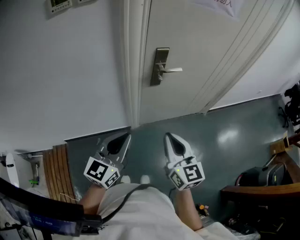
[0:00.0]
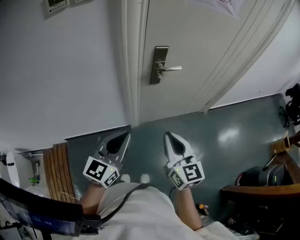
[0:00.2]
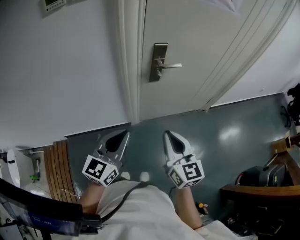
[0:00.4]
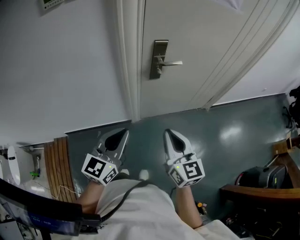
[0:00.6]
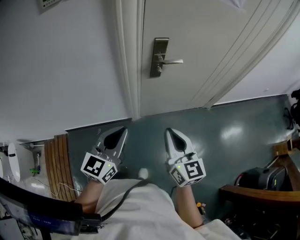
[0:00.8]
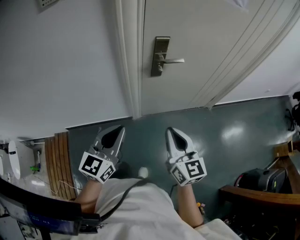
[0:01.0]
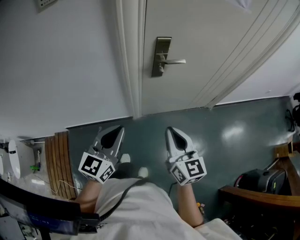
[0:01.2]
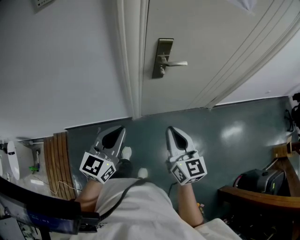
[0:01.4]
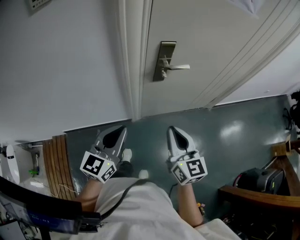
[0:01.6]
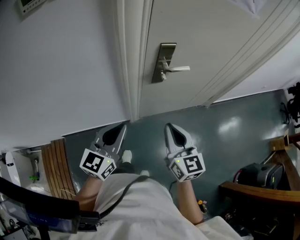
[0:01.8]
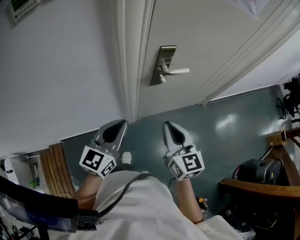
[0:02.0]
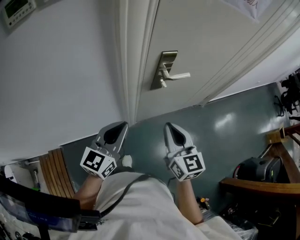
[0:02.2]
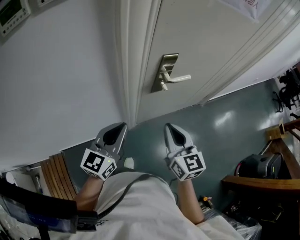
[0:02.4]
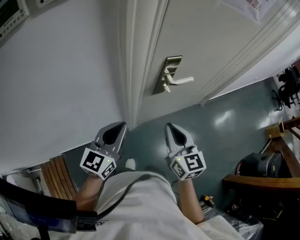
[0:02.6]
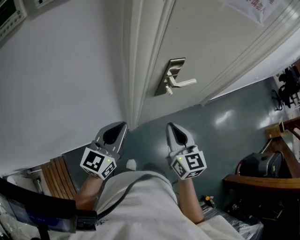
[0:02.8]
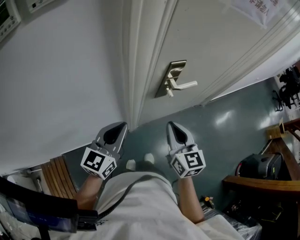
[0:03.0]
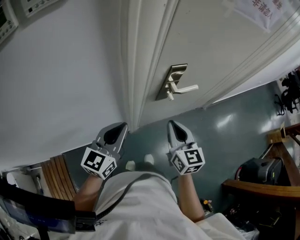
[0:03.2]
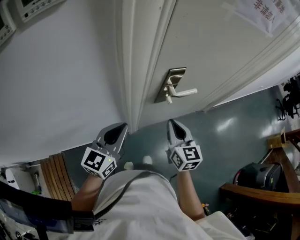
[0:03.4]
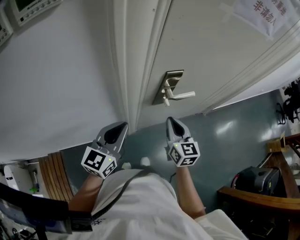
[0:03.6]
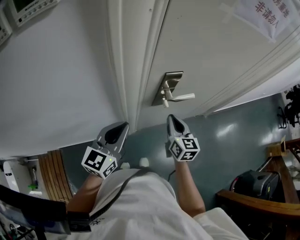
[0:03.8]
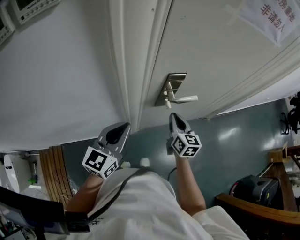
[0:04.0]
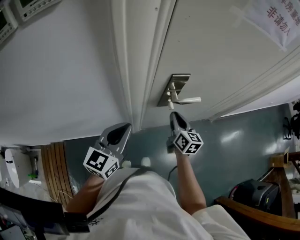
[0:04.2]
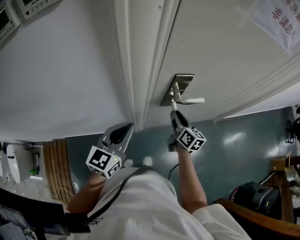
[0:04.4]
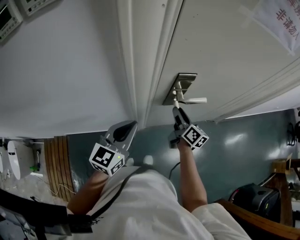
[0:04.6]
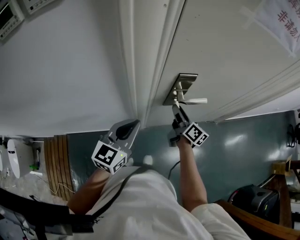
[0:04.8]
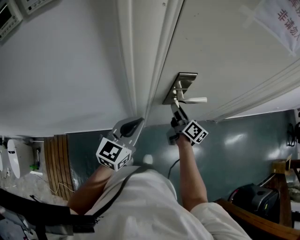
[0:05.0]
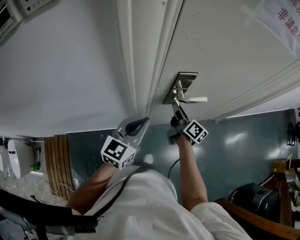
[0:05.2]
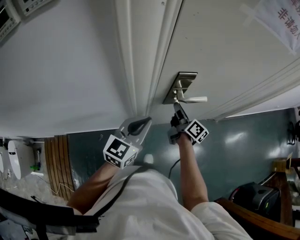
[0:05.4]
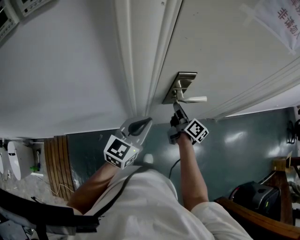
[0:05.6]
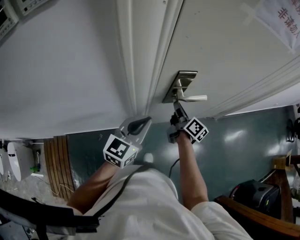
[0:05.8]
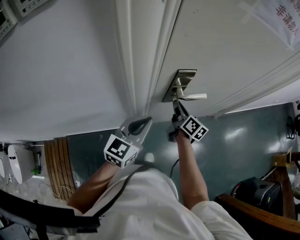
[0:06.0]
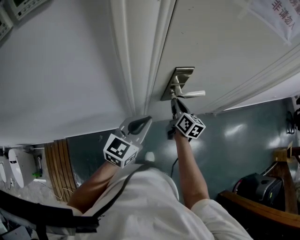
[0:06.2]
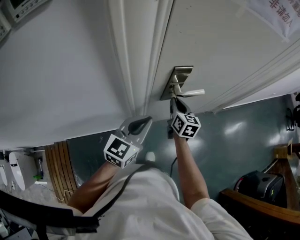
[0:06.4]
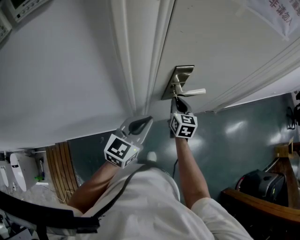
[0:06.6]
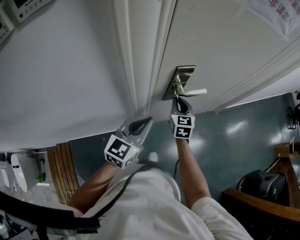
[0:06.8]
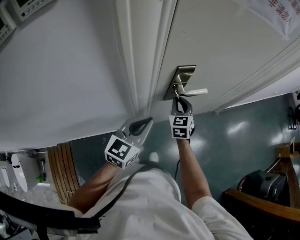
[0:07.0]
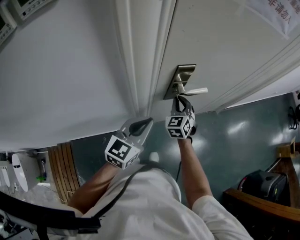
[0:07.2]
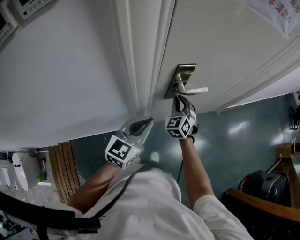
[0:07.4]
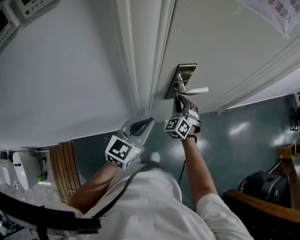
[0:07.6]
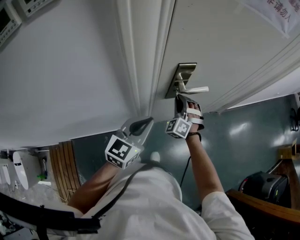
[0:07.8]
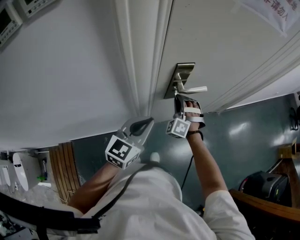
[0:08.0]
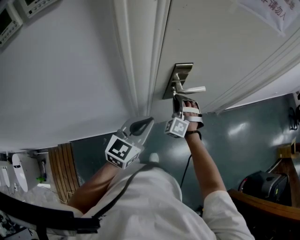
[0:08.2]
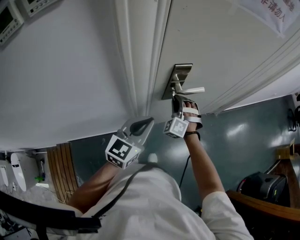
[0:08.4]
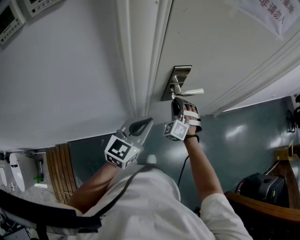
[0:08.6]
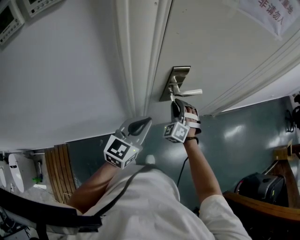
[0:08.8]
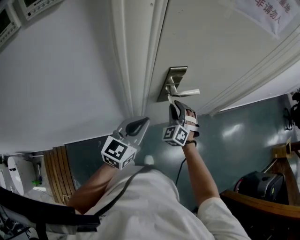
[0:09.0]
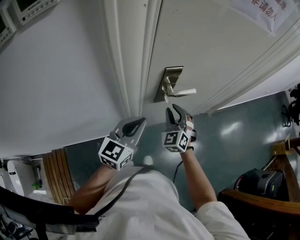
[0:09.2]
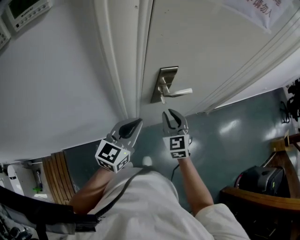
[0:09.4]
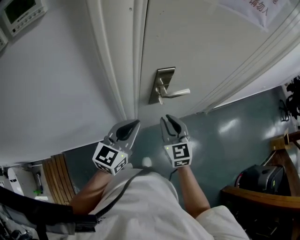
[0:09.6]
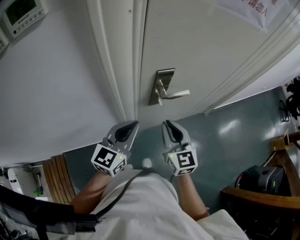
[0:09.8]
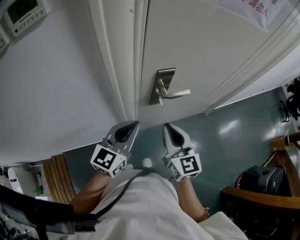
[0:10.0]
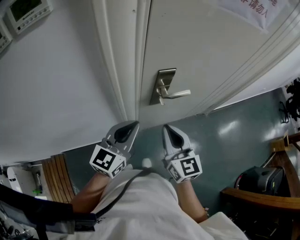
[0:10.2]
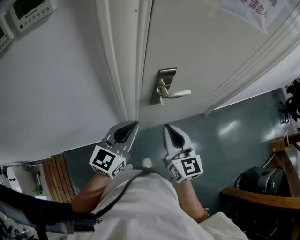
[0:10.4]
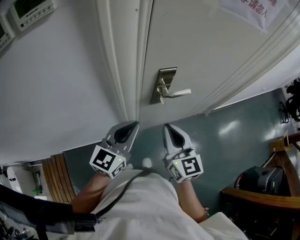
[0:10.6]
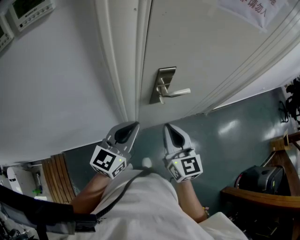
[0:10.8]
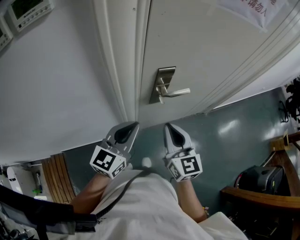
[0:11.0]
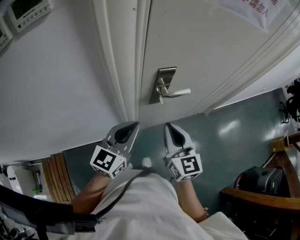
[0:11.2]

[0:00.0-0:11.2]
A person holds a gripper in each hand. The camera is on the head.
0:00.0 to 0:01.6: Both grippers travel together forward, about 10 cm.
0:01.6 to 0:03.2: The grippers both shift forward and to the left by about 20 cm.
0:03.2 to 0:04.8: The right gripper heads forward and downward, covering approximately 20 cm, rolls clockwise, seen from behind, by roughly 40 degrees, and opens, while the left gripper moves to the right, about 5 cm.
0:04.8 to 0:06.4: The right gripper swivels roughly 40 degrees, and closes up.
0:06.4 to 0:08.0: The right gripper rolls counterclockwise, seen from behind, by roughly 90 degrees.
0:08.0 to 0:09.6: The right gripper heads backward and upward, covering about 15 cm, and rotates around the line of its fingers by some 60 degrees, clockwise from behind.
0:09.6 to 0:11.2: The right gripper shifts some 5 cm upward.

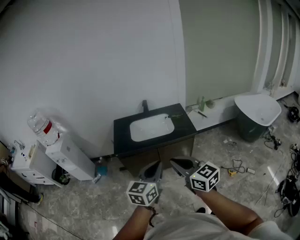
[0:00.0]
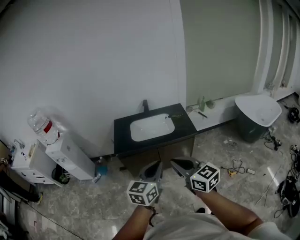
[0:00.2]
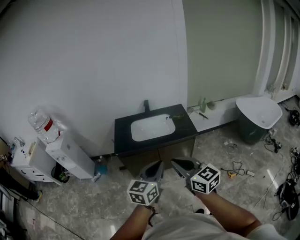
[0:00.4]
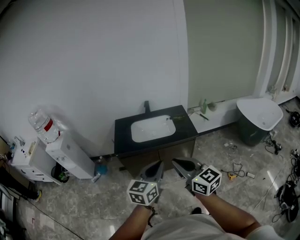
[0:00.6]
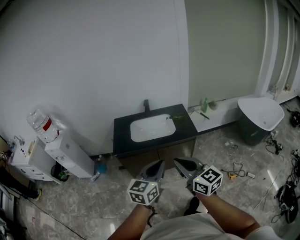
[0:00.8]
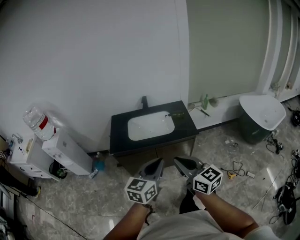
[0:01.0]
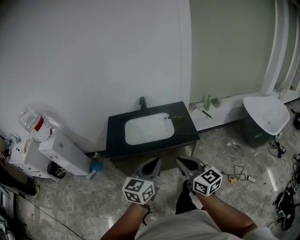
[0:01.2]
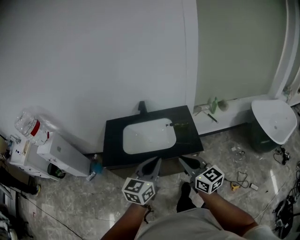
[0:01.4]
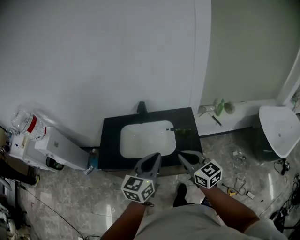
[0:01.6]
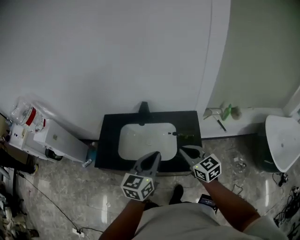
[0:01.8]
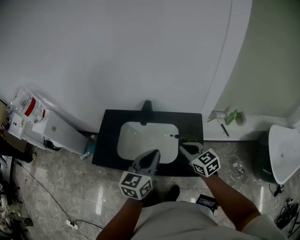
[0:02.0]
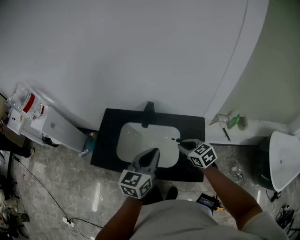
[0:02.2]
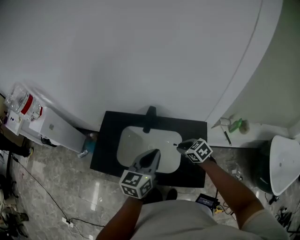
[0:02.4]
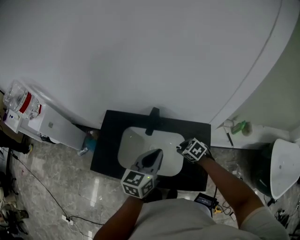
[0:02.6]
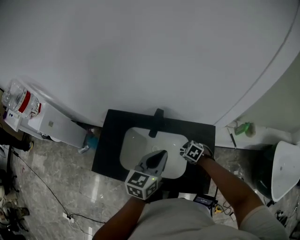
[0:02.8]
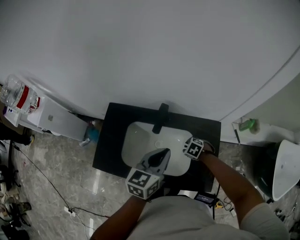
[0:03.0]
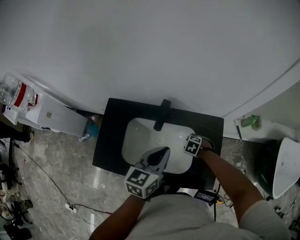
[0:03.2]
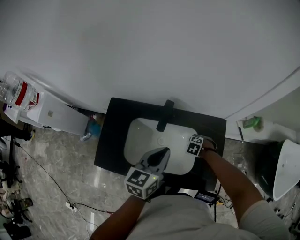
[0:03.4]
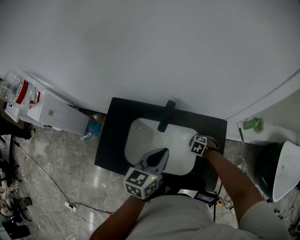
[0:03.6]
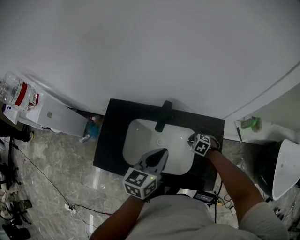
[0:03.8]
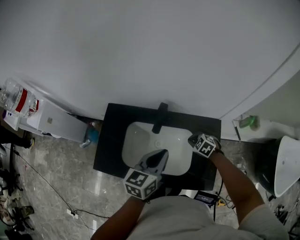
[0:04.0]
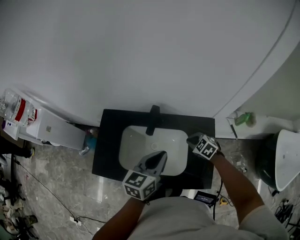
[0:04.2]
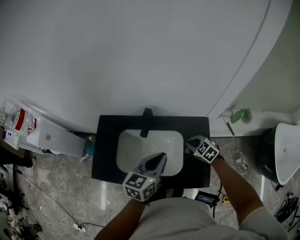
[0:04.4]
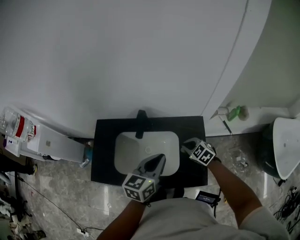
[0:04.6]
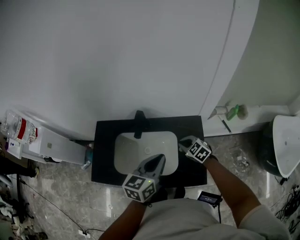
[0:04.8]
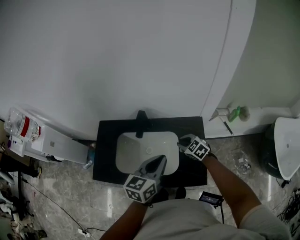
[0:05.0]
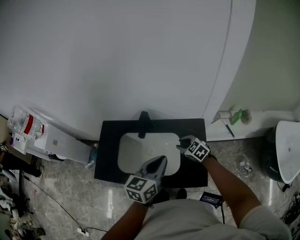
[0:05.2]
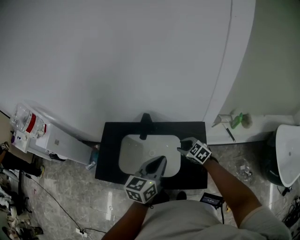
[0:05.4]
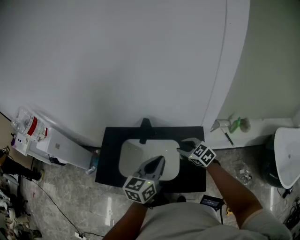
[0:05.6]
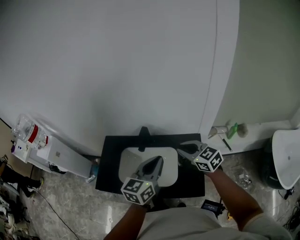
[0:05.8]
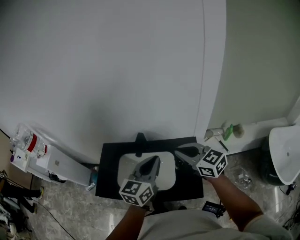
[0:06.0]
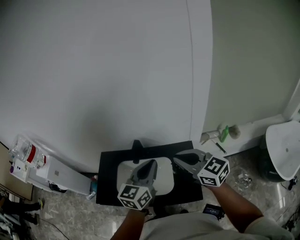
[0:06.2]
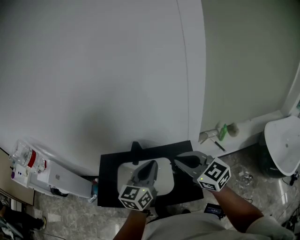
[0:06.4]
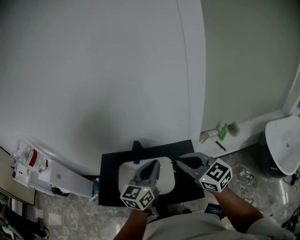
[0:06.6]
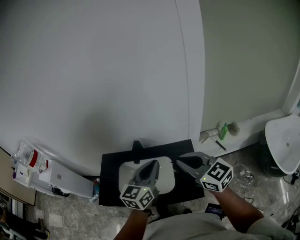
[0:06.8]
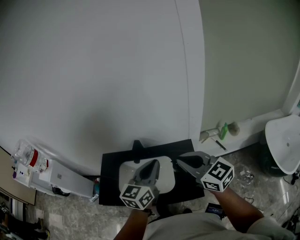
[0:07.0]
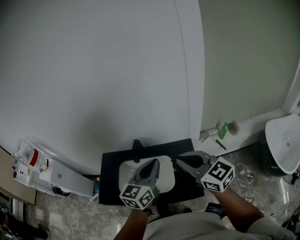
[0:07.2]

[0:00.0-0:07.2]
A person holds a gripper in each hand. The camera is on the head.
0:00.0 to 0:01.4: The left gripper goes approximately 30 cm forward, while the right gripper shifts some 35 cm forward and to the right.
0:01.4 to 0:02.8: The left gripper ends up about 40 cm from where it was; the right gripper shifts by some 50 cm, points its fingers roughly 70 degrees further downward, and opens.
0:02.8 to 0:04.4: The right gripper moves roughly 10 cm, changes its angle by approximately 20 degrees, and closes its fingers.
0:04.4 to 0:05.8: The left gripper shifts about 10 cm upward. The right gripper travels upward by about 20 cm, and turns by roughly 30 degrees.
0:05.8 to 0:07.2: The left gripper travels upward by approximately 5 cm. The right gripper shifts some 20 cm upward and backward.

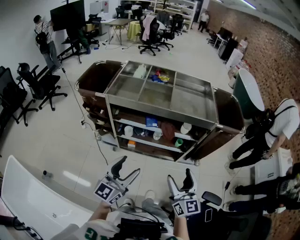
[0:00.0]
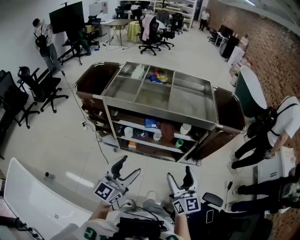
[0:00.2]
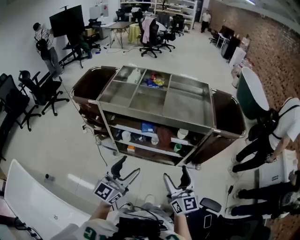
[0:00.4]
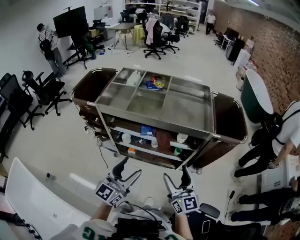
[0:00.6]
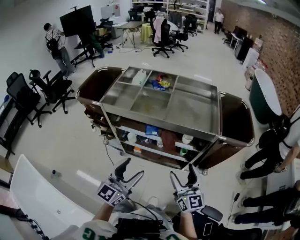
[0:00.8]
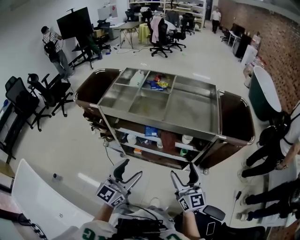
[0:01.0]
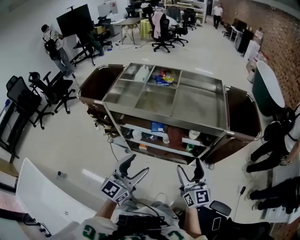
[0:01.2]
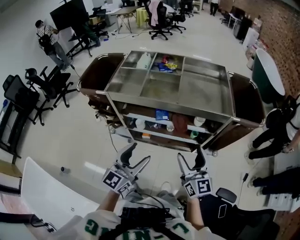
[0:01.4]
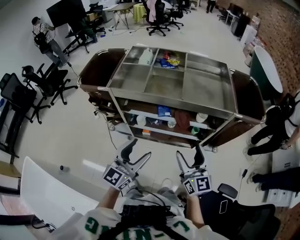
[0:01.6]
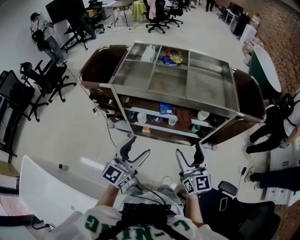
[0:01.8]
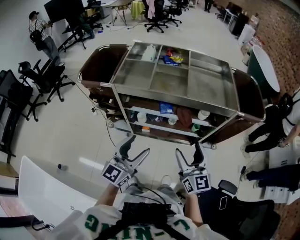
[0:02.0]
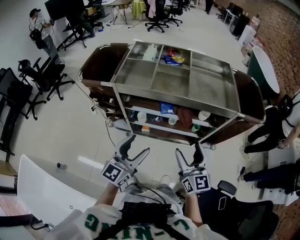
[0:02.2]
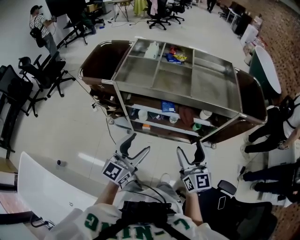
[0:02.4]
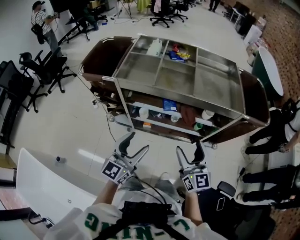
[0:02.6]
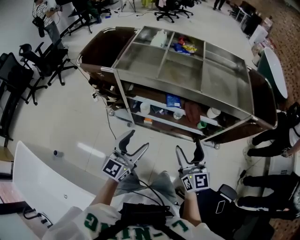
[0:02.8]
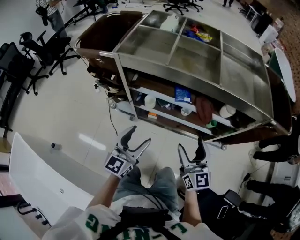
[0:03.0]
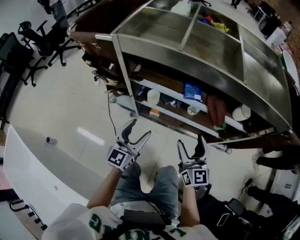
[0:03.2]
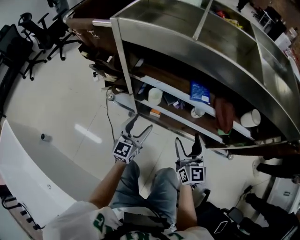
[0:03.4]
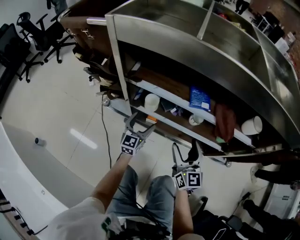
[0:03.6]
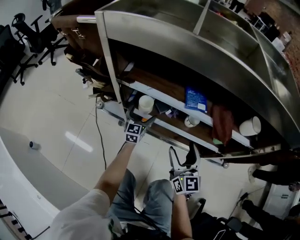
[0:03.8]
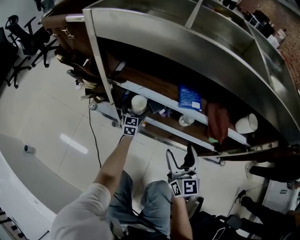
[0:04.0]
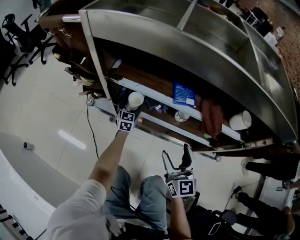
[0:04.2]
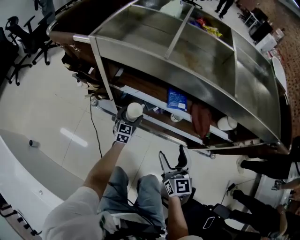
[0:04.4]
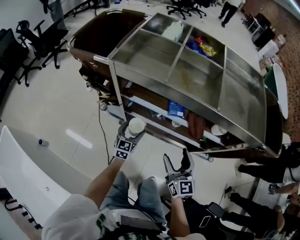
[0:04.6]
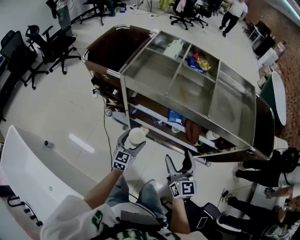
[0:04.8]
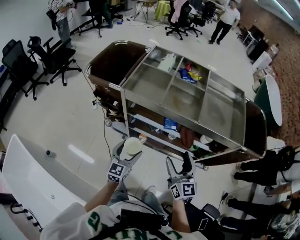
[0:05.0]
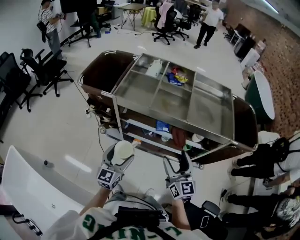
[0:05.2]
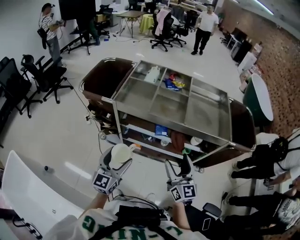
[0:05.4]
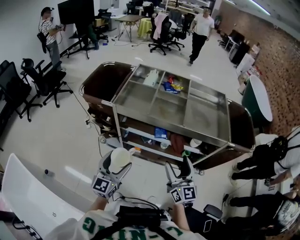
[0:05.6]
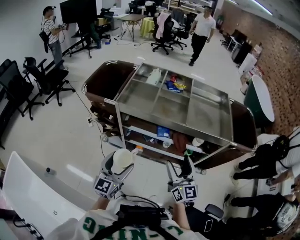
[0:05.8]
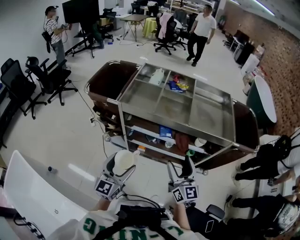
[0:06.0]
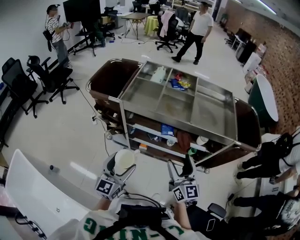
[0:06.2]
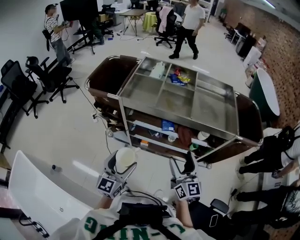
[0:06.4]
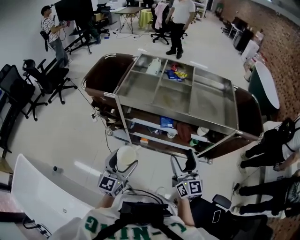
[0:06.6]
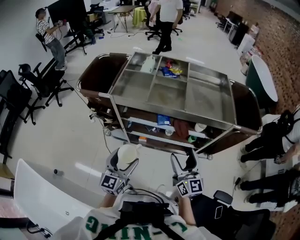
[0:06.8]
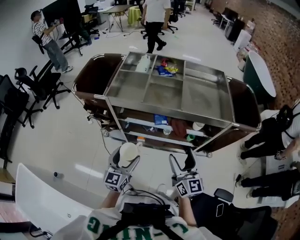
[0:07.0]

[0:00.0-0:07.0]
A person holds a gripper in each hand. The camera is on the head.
0:00.0 to 0:01.4: The two grippers go some 10 cm forward.
0:01.4 to 0:02.8: The right gripper goes some 10 cm to the left and downward. Meanwhile the left gripper goes about 15 cm downward and to the left.
0:02.8 to 0:04.2: The right gripper travels downward by roughly 30 cm; the left gripper heads downward and forward, covering roughly 60 cm, and rotates some 30 degrees.
0:04.2 to 0:05.6: The left gripper shifts about 60 cm upward and backward; the right gripper travels upward by some 40 cm.
0:05.6 to 0:07.0: The left gripper heads downward, covering approximately 5 cm.
